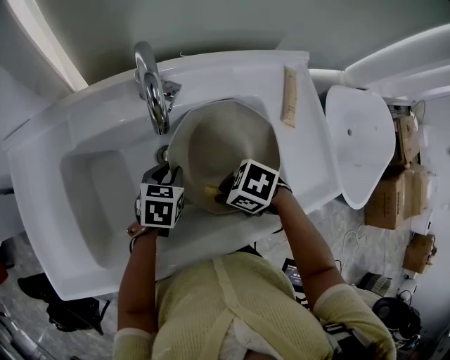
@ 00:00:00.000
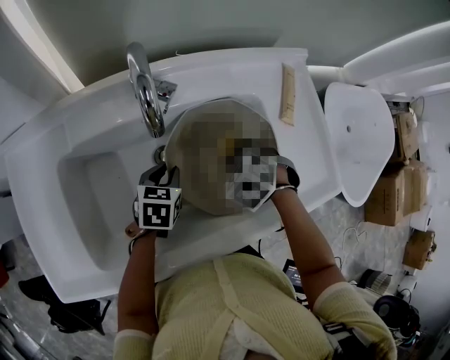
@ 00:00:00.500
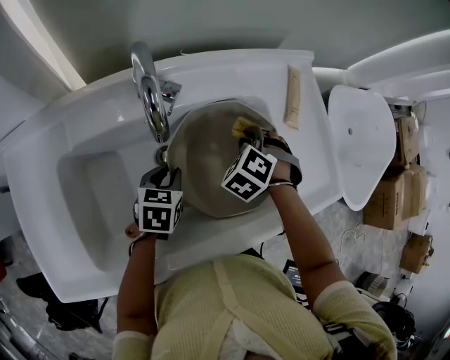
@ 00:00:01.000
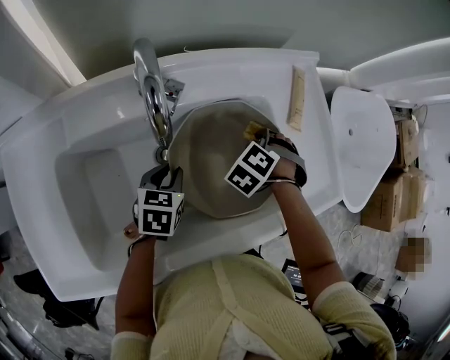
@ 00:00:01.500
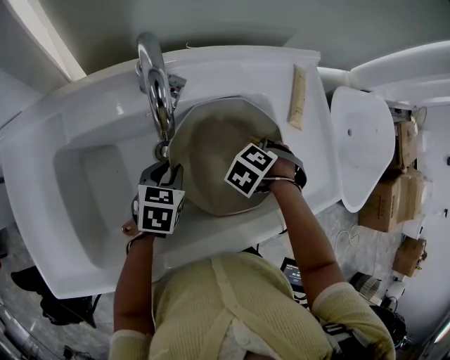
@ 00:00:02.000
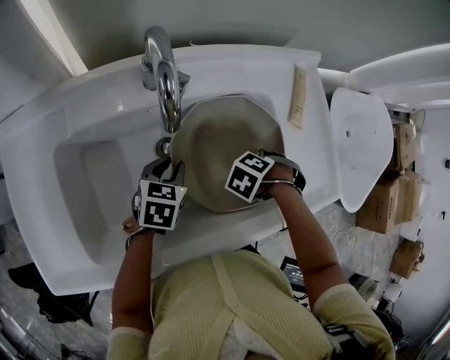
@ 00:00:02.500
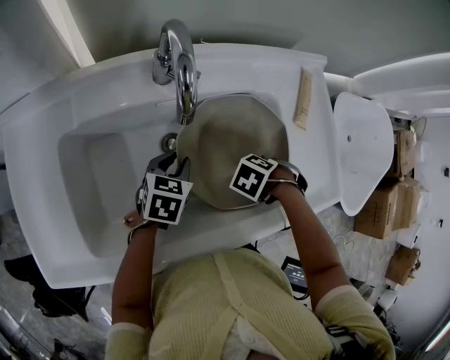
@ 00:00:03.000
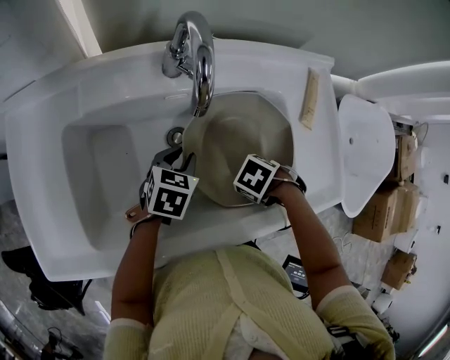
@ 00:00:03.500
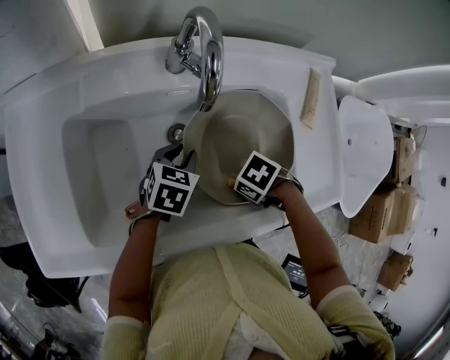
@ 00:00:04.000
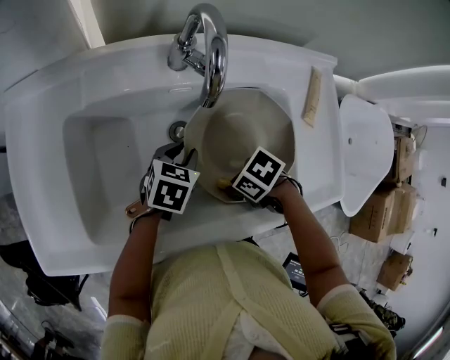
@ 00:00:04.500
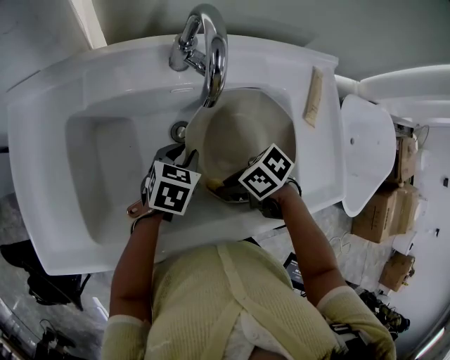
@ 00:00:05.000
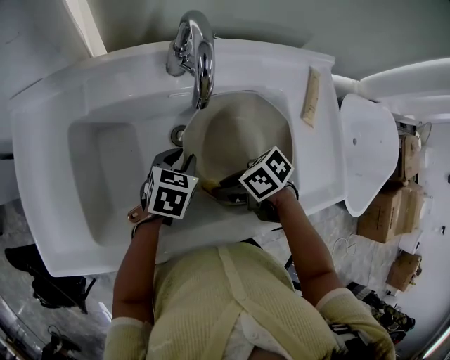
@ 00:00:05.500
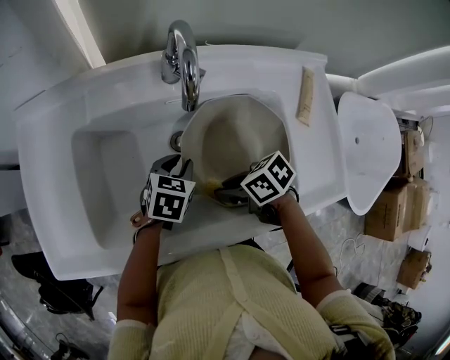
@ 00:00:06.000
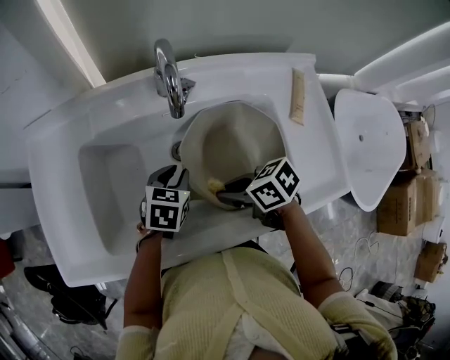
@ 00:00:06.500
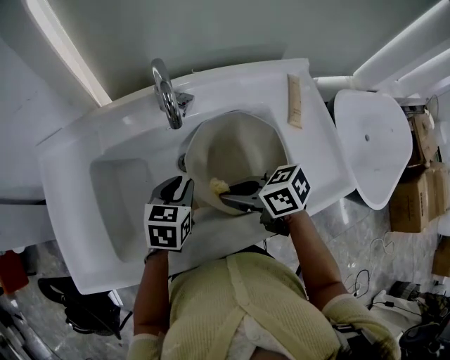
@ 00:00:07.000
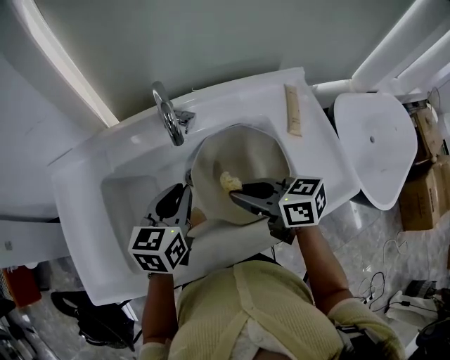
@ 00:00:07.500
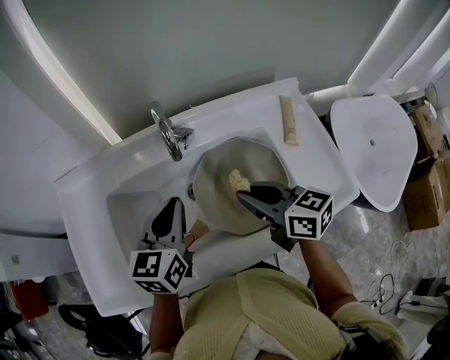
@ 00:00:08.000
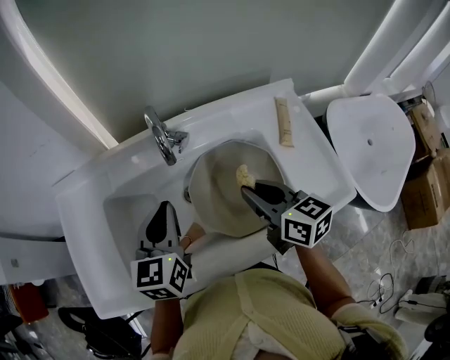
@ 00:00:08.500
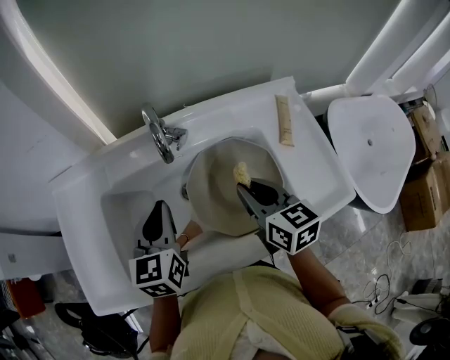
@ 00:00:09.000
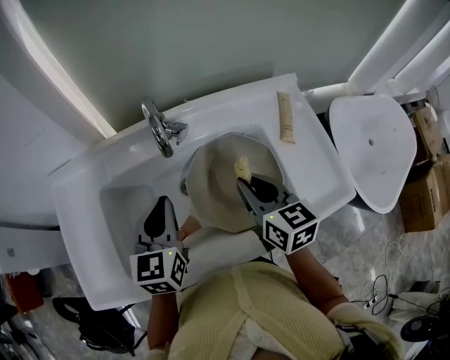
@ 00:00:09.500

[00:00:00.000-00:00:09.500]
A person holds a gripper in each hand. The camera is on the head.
00:00:00.000 to 00:00:02.000: The right gripper changes place by some 15 cm, and changes its angle by approximately 50 degrees.
00:00:02.000 to 00:00:04.000: The right gripper changes place by about 15 cm, and turns by about 40 degrees.
00:00:04.000 to 00:00:05.500: The right gripper changes place by about 10 cm, and changes its angle by about 40 degrees.
00:00:05.500 to 00:00:07.500: Both grippers travel together upward, approximately 15 cm. The left gripper turns by about 20 degrees. The right gripper rotates roughly 50 degrees.
00:00:07.500 to 00:00:09.500: The right gripper heads to the right, covering approximately 5 cm, and turns by some 40 degrees.

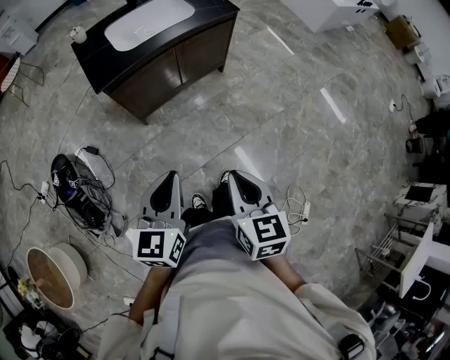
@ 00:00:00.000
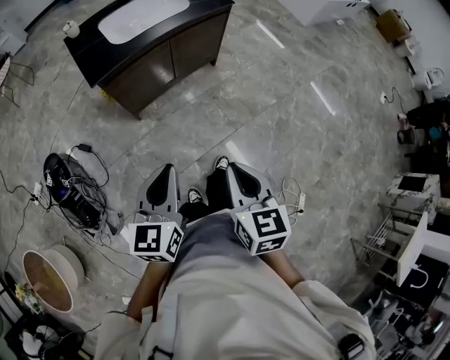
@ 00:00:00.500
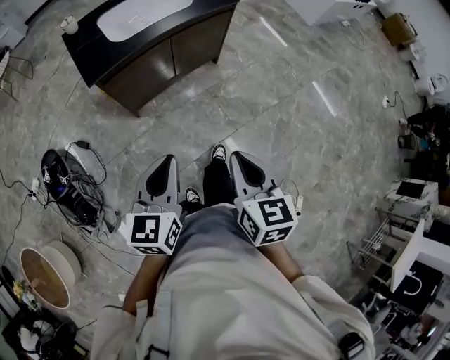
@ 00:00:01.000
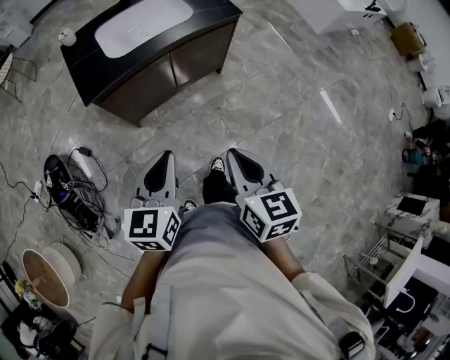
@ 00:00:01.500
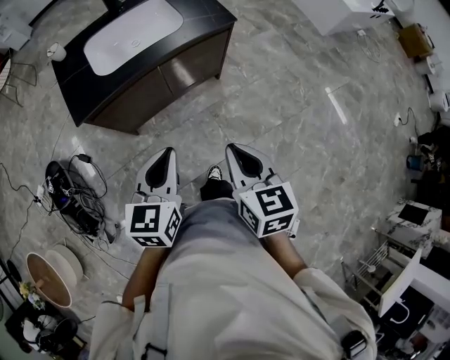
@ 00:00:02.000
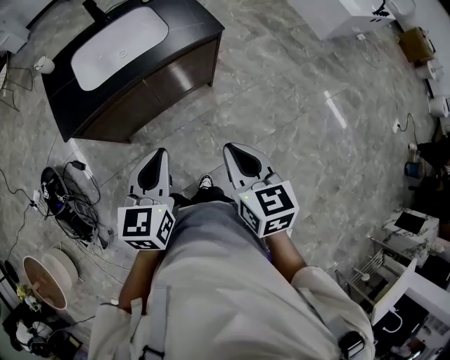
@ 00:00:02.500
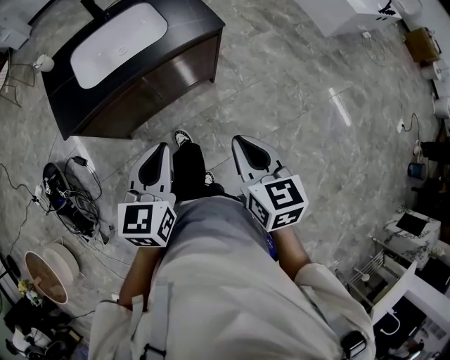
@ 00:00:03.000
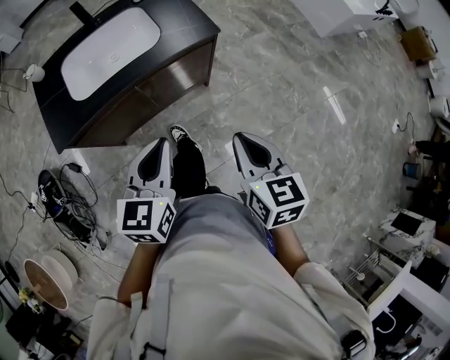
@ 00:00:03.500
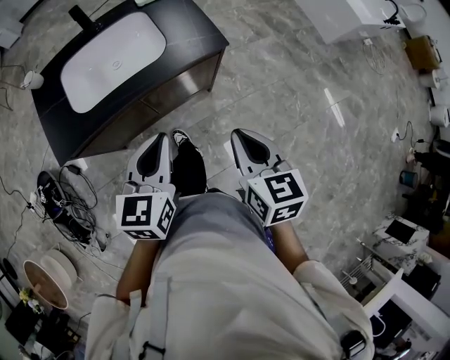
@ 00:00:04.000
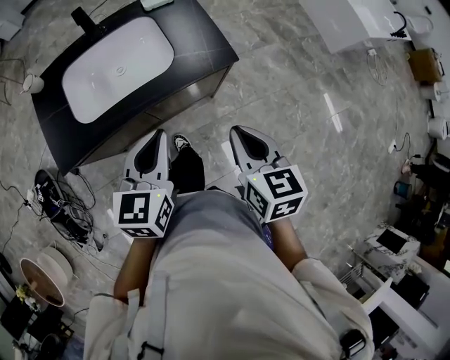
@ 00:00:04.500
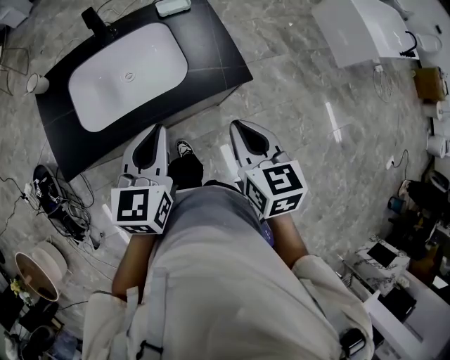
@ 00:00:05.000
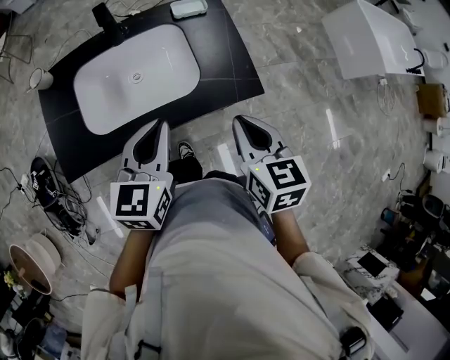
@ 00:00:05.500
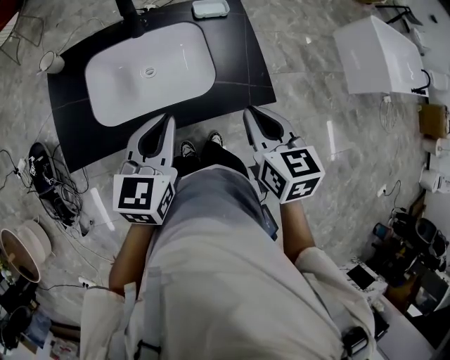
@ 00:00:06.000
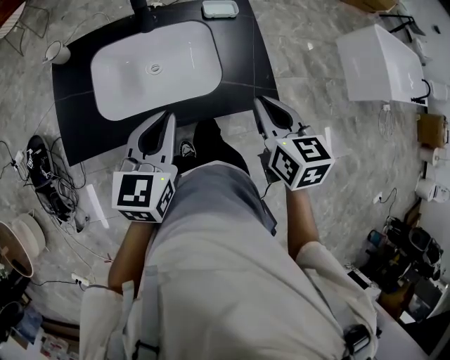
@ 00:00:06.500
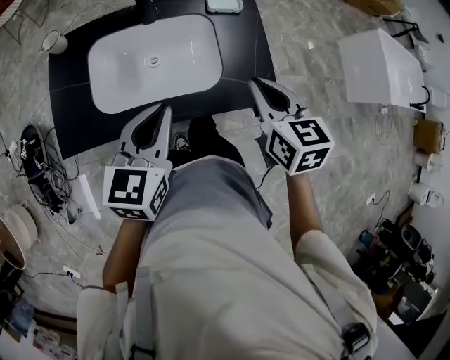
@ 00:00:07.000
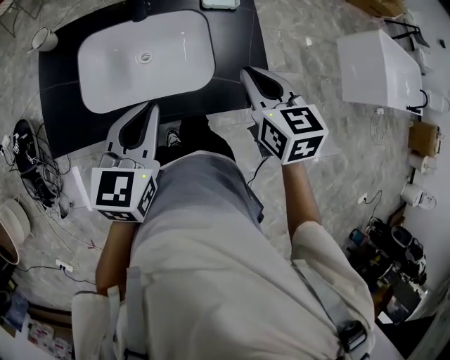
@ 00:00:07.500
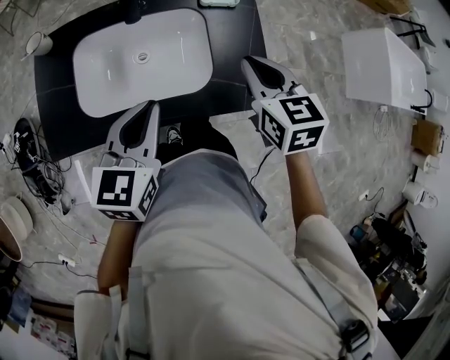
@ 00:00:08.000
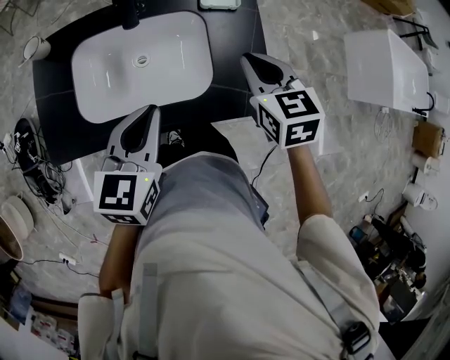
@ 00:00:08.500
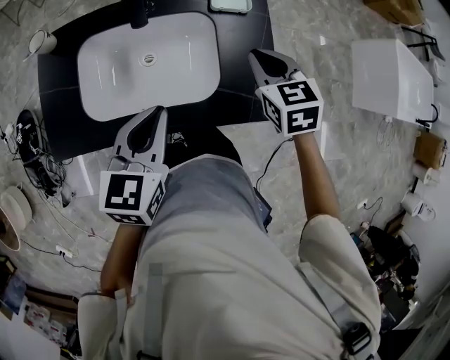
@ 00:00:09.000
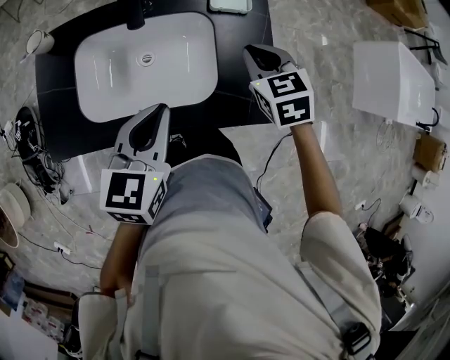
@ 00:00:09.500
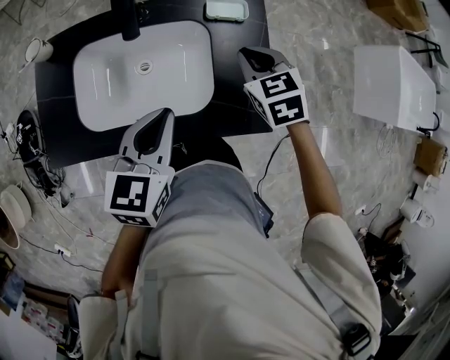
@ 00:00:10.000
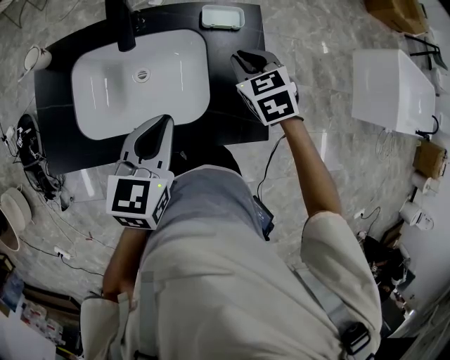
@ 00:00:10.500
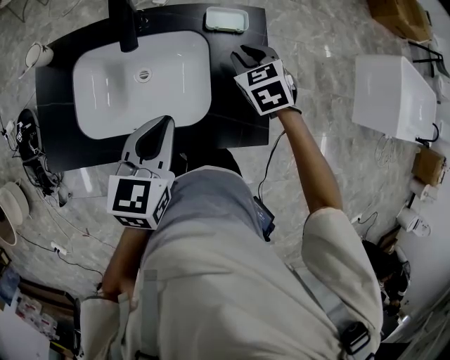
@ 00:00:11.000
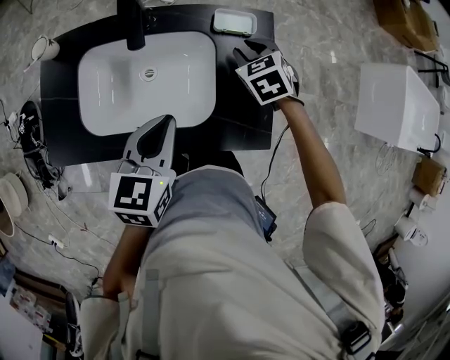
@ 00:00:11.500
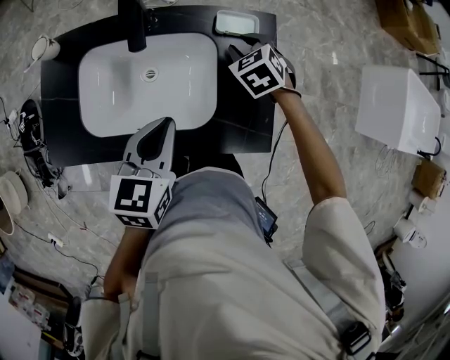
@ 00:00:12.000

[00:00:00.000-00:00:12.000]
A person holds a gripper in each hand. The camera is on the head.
00:00:00.000 to 00:00:02.000: Both grippers move forward, roughly 25 cm.
00:00:02.000 to 00:00:04.000: The left gripper is displaced forward by some 20 cm. The right gripper moves forward and to the right, approximately 25 cm.
00:00:04.000 to 00:00:06.000: The right gripper travels forward by approximately 25 cm. Meanwhile the left gripper is displaced forward and to the left by some 25 cm.
00:00:06.000 to 00:00:08.000: The right gripper heads forward, covering some 15 cm; the left gripper moves roughly 5 cm.
00:00:08.000 to 00:00:10.000: The right gripper moves forward and downward, roughly 15 cm; the left gripper shifts about 5 cm forward.
00:00:10.000 to 00:00:12.000: The right gripper heads forward and downward, covering approximately 15 cm, and opens its fingers.

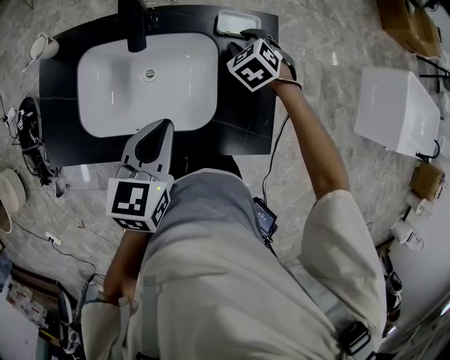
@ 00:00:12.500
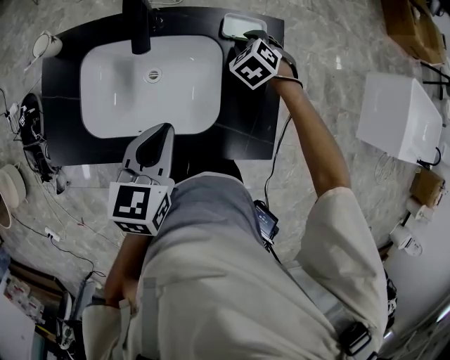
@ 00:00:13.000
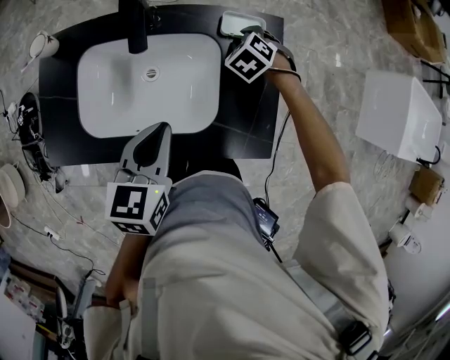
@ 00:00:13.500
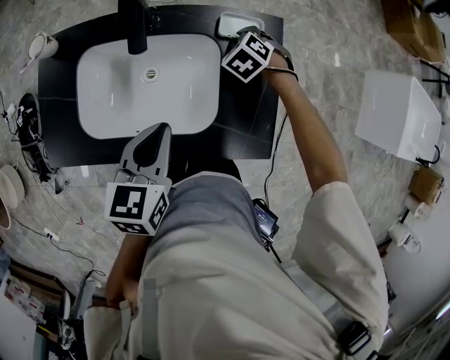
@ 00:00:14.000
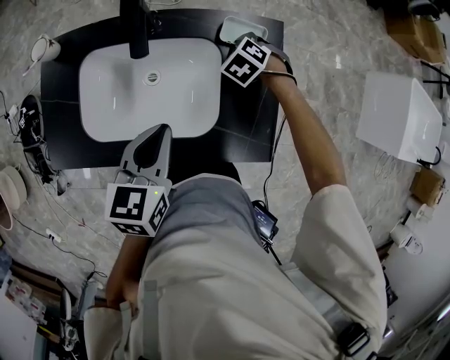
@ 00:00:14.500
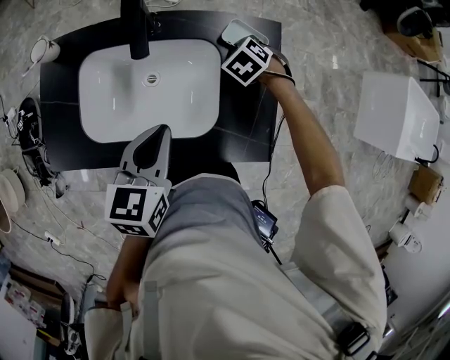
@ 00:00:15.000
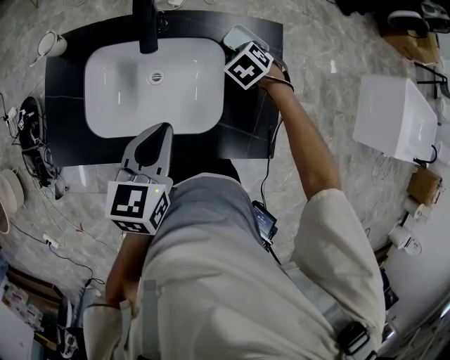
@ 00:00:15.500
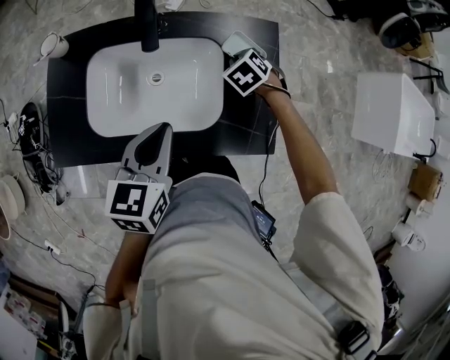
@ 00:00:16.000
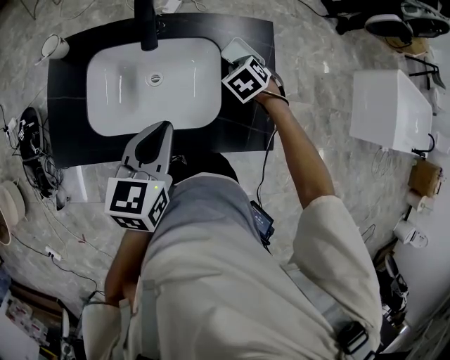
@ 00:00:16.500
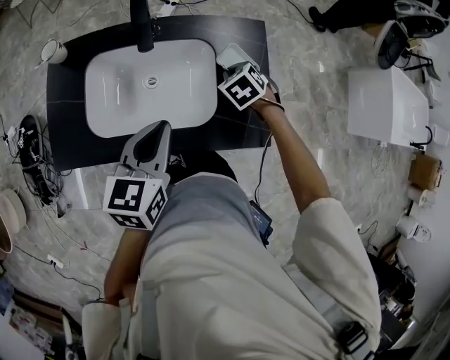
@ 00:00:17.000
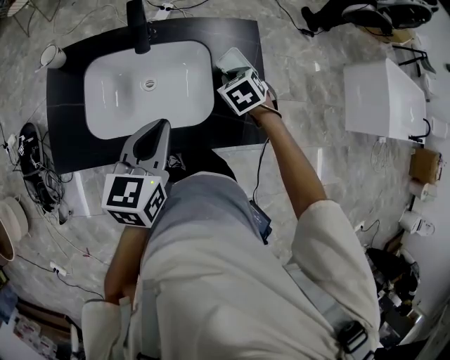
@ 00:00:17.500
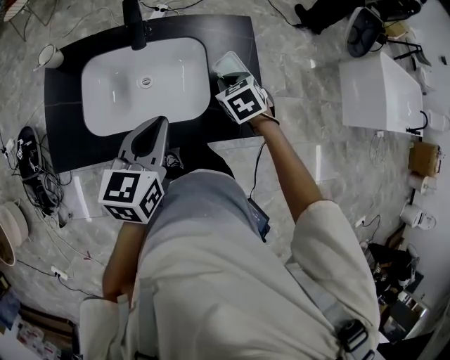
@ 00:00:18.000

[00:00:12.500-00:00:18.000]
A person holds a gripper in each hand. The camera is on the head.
00:00:12.500 to 00:00:14.500: The right gripper is displaced downward by roughly 5 cm, and closes its fingers.
00:00:14.500 to 00:00:16.000: The right gripper moves backward, some 5 cm.
00:00:16.000 to 00:00:18.000: The left gripper ends up some 5 cm from where it was; the right gripper is displaced backward and upward by about 15 cm.
